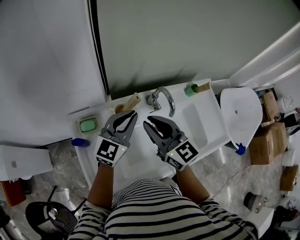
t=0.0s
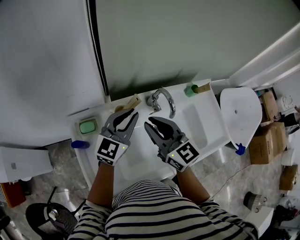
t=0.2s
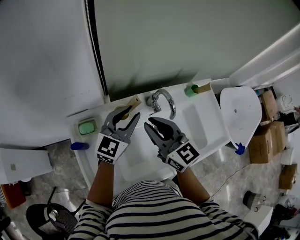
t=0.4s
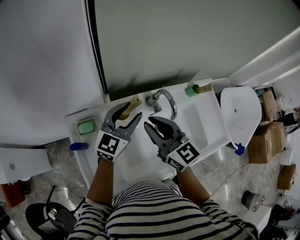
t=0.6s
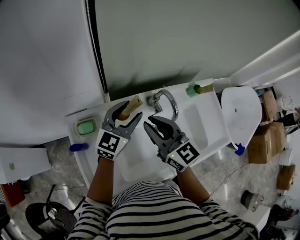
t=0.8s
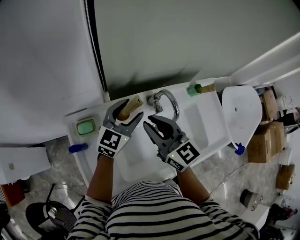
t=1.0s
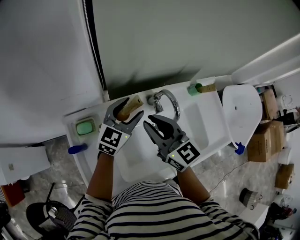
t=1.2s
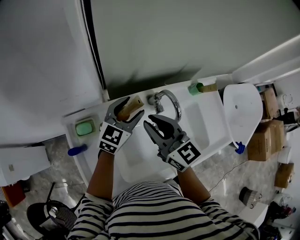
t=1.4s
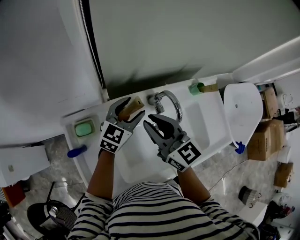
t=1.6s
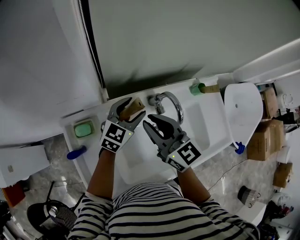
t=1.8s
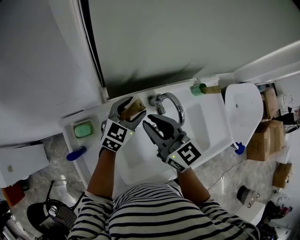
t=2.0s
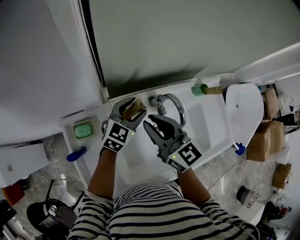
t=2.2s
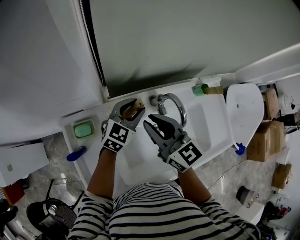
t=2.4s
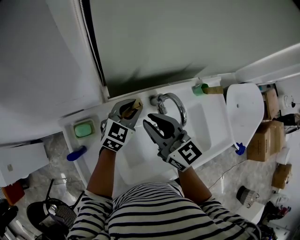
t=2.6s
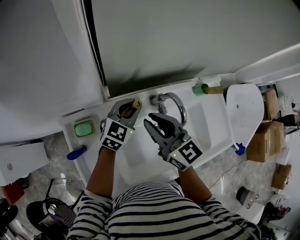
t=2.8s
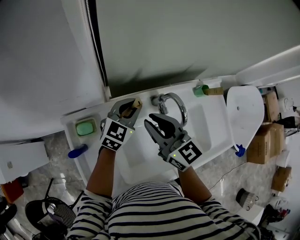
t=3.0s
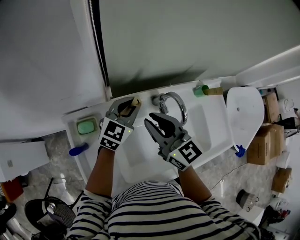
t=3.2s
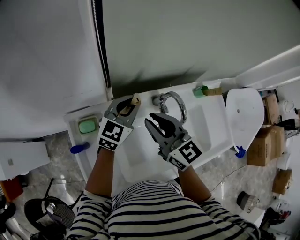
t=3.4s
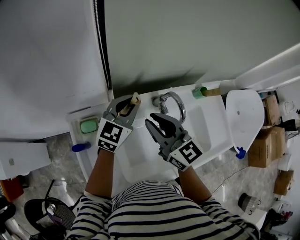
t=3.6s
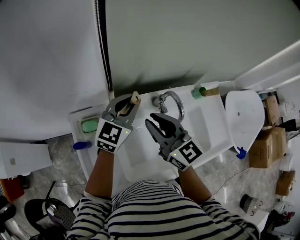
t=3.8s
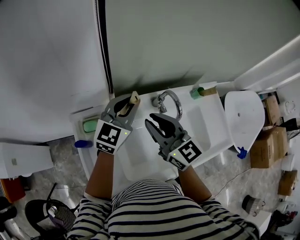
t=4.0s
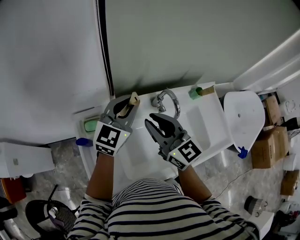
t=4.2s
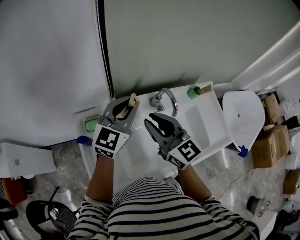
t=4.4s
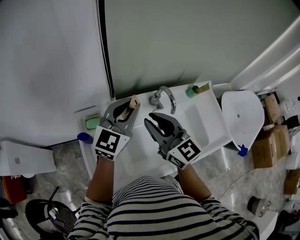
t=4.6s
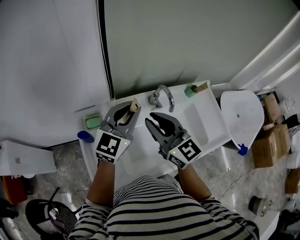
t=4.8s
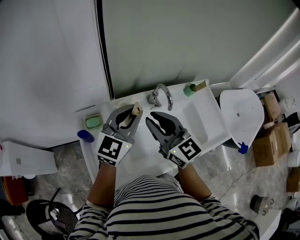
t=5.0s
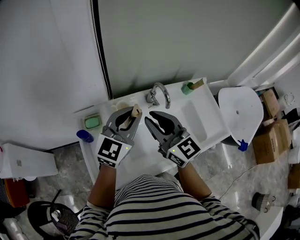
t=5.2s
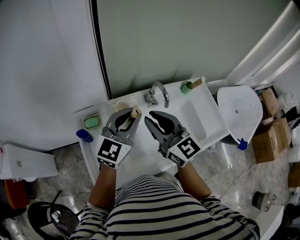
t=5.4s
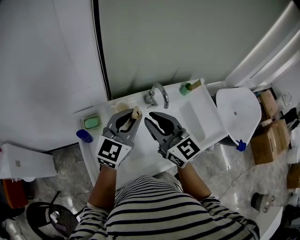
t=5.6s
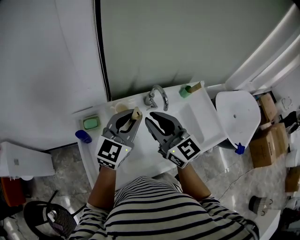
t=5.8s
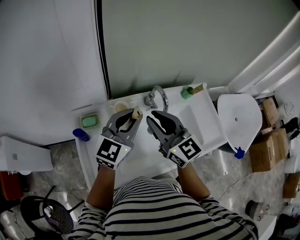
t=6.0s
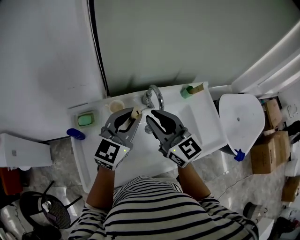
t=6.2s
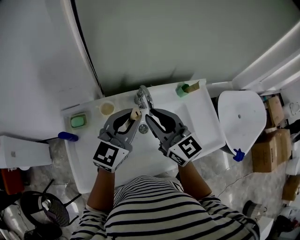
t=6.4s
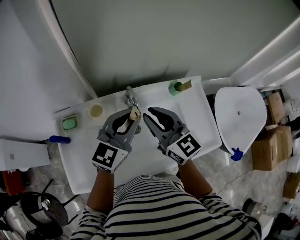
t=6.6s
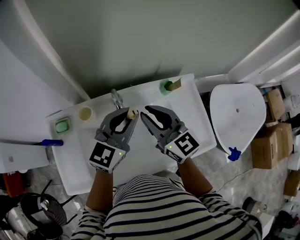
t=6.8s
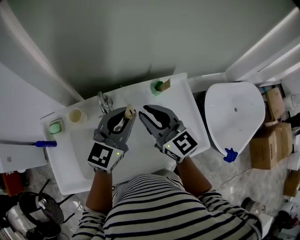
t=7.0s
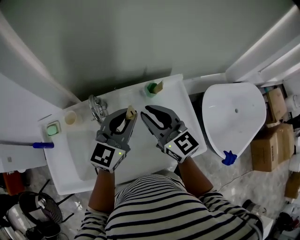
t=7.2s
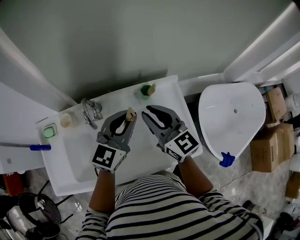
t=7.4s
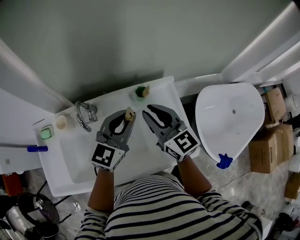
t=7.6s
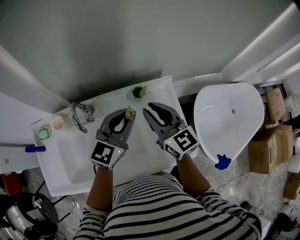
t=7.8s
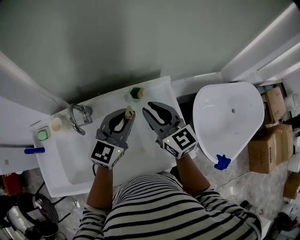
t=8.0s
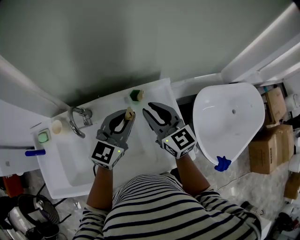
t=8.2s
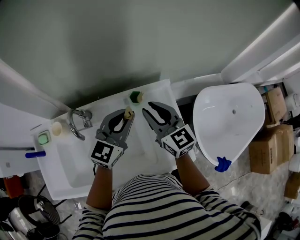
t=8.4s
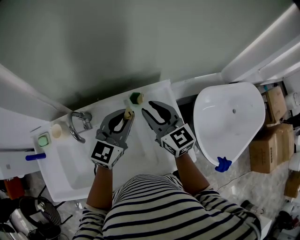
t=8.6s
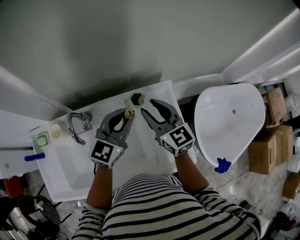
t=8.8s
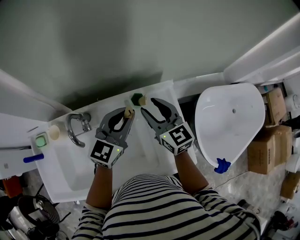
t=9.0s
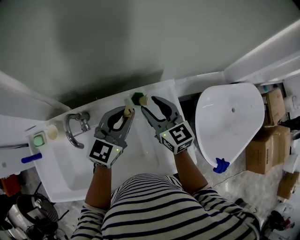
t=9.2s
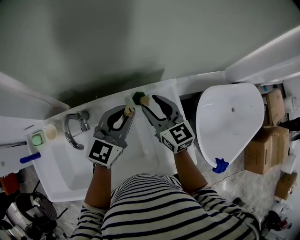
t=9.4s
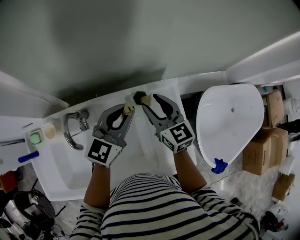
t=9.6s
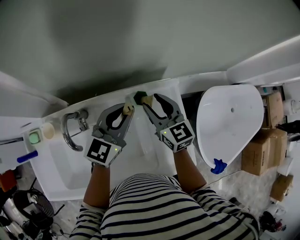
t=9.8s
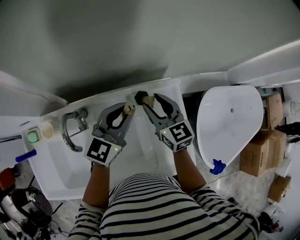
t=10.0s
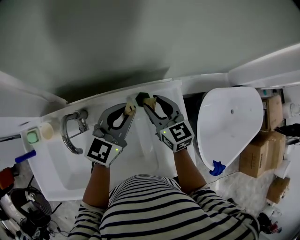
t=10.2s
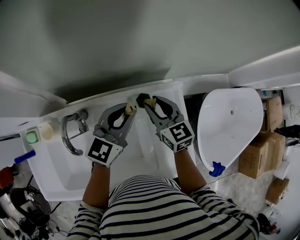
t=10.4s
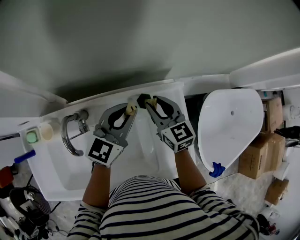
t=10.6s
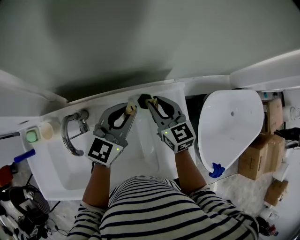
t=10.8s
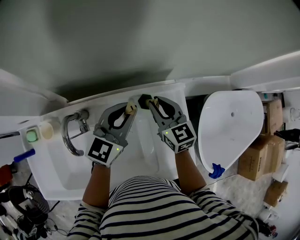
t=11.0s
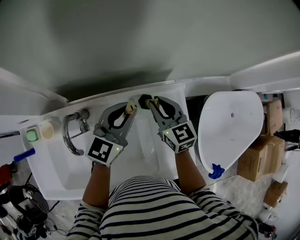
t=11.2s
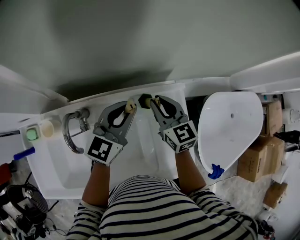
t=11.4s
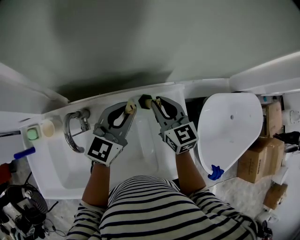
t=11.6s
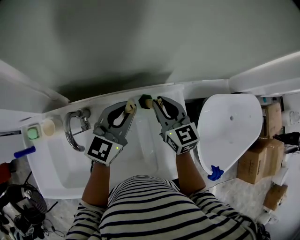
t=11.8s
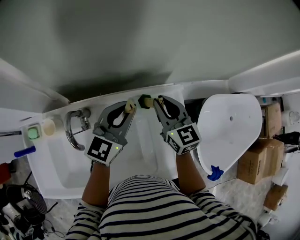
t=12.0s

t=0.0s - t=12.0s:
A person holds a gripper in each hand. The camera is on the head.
t=0.0s - t=1.6s: The left gripper is displaced downward and forward by about 10 cm, and opens its fingers. Meanwhile the right gripper goes roughly 5 cm forward.
t=1.6s - t=3.0s: The left gripper closes.
t=3.0s - t=4.4s: The left gripper heads upward and backward, covering approximately 20 cm; the right gripper moves backward and upward, some 10 cm.
t=4.4s - t=6.0s: The left gripper is displaced backward by approximately 10 cm; the right gripper changes place by roughly 5 cm.
t=6.0s - t=7.6s: Both grippers move to the right, about 35 cm.
t=7.6s - t=9.0s: The left gripper travels forward by some 10 cm, while the right gripper shifts roughly 10 cm forward and downward, and opens up.
t=9.0s - t=10.4s: The left gripper shifts by roughly 5 cm; the right gripper goes approximately 5 cm downward.
t=10.4s - t=12.0s: The right gripper ends up about 5 cm from where it was.

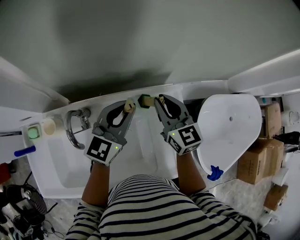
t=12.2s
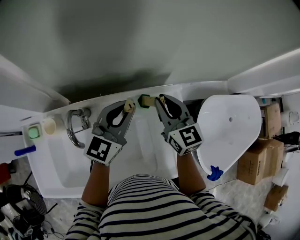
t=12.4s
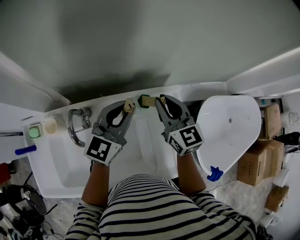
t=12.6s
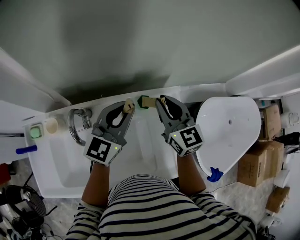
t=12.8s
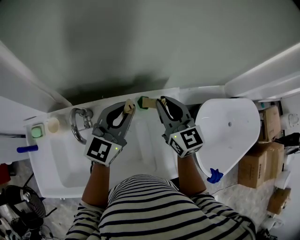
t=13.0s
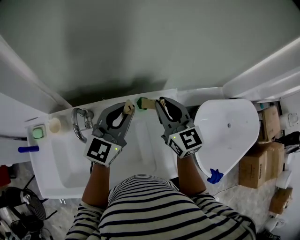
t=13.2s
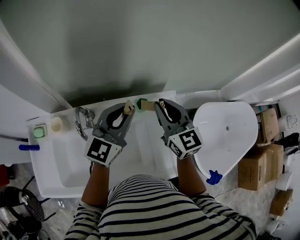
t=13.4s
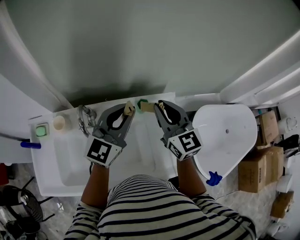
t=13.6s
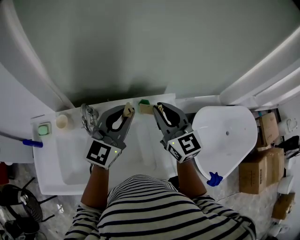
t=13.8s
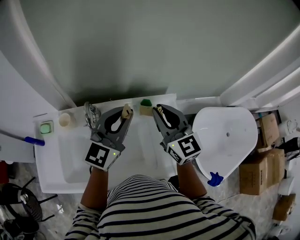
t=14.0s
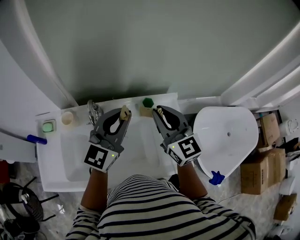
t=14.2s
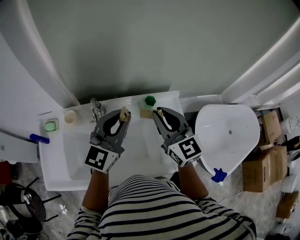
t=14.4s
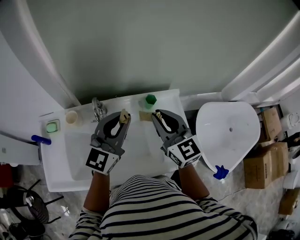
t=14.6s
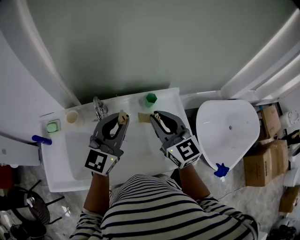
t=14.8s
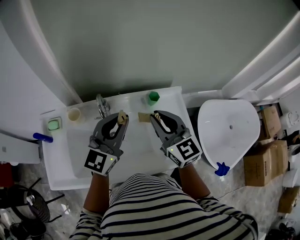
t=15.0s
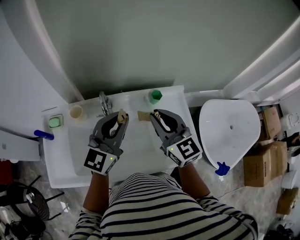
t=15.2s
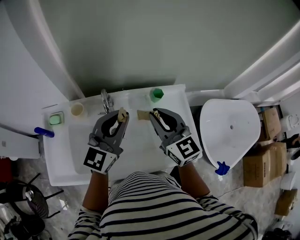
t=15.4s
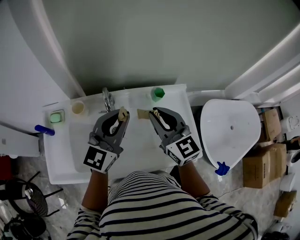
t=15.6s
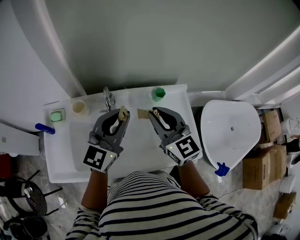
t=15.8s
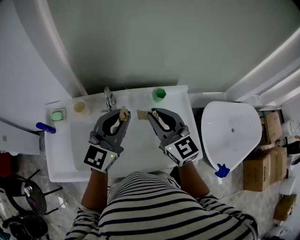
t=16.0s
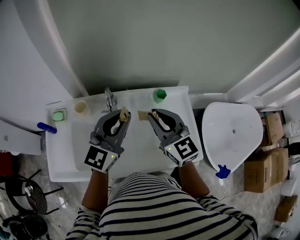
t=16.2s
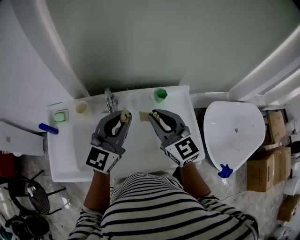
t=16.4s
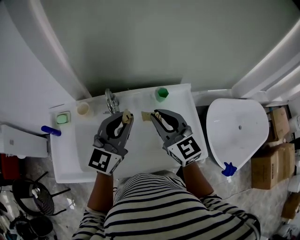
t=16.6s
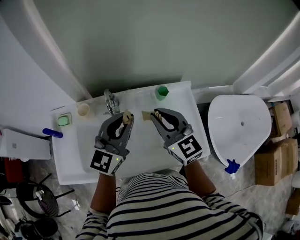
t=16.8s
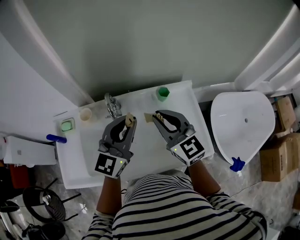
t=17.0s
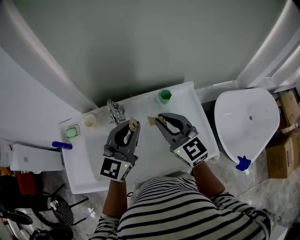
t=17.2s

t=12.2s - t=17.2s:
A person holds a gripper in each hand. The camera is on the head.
t=12.2s - t=13.8s: The grippers both shift upward and backward by approximately 15 cm.
t=13.8s - t=15.6s: The grippers both shift to the left and backward by about 15 cm.
t=15.6s - t=17.2s: The grippers move only a little.

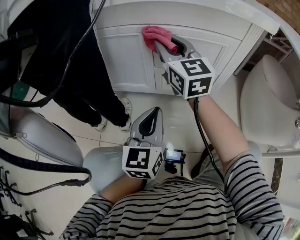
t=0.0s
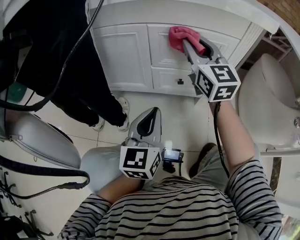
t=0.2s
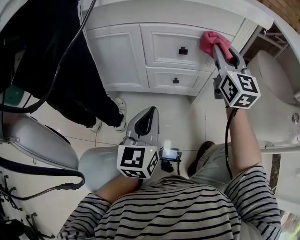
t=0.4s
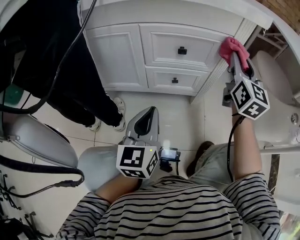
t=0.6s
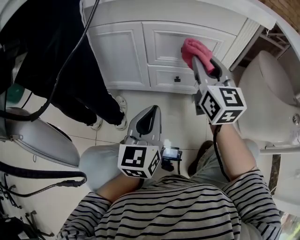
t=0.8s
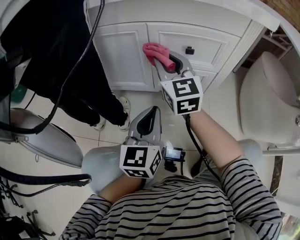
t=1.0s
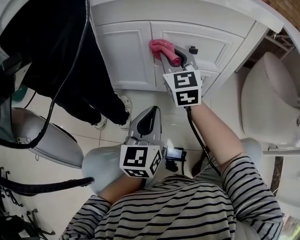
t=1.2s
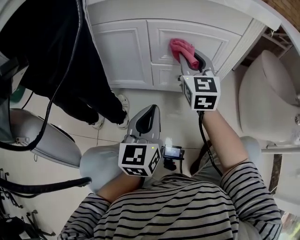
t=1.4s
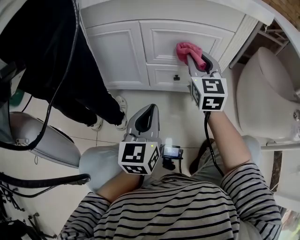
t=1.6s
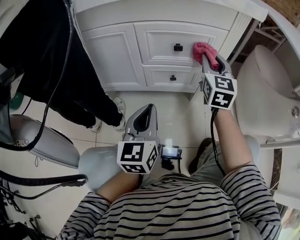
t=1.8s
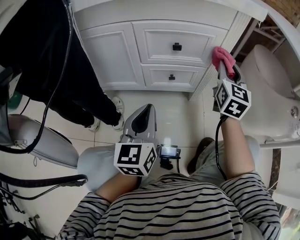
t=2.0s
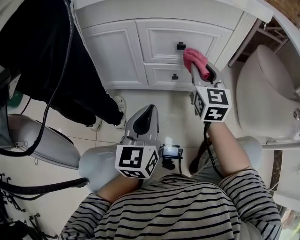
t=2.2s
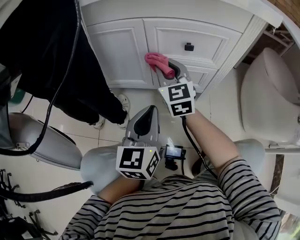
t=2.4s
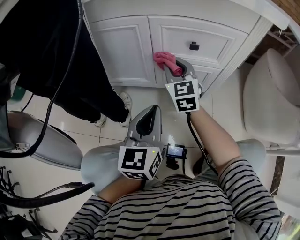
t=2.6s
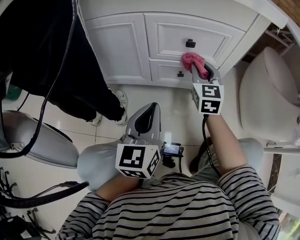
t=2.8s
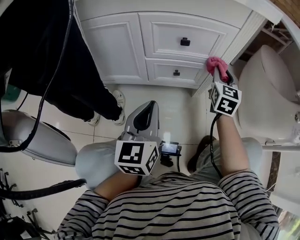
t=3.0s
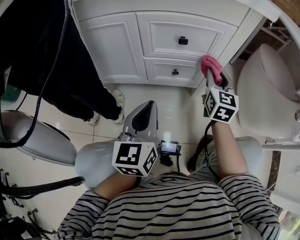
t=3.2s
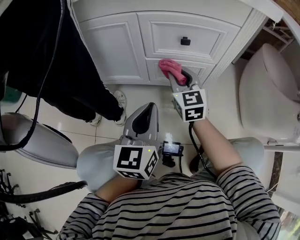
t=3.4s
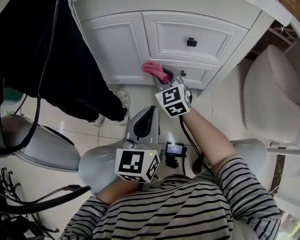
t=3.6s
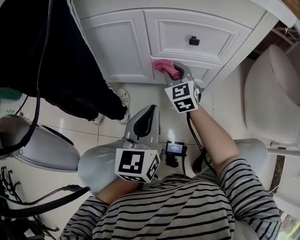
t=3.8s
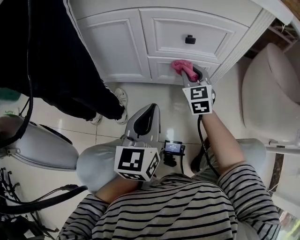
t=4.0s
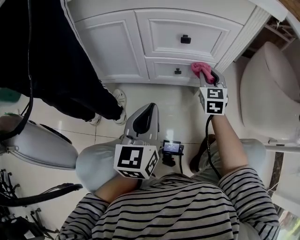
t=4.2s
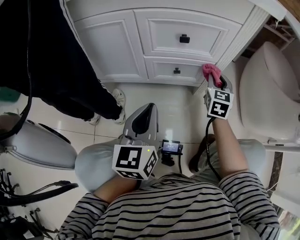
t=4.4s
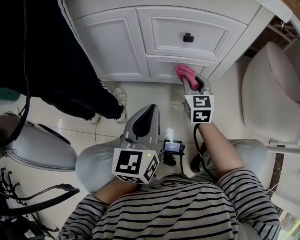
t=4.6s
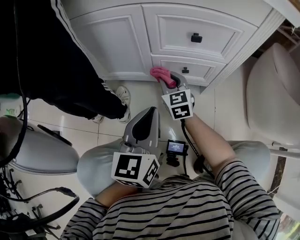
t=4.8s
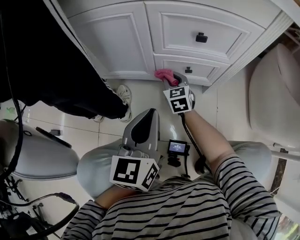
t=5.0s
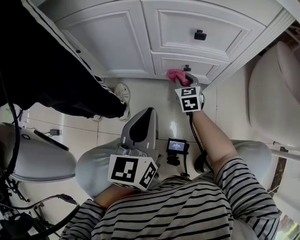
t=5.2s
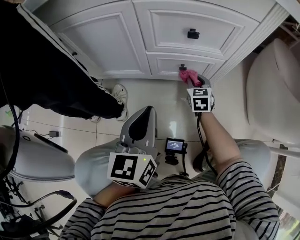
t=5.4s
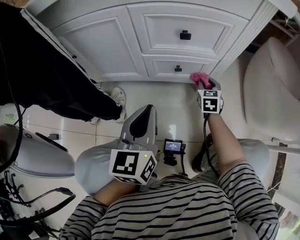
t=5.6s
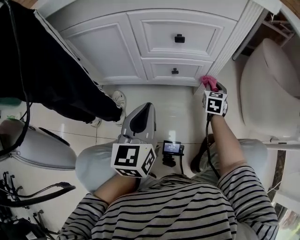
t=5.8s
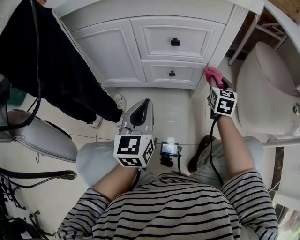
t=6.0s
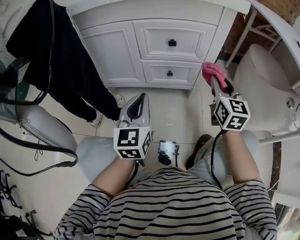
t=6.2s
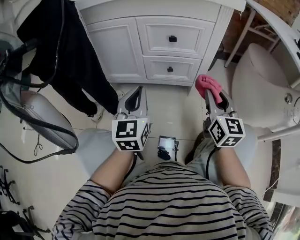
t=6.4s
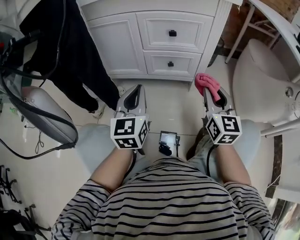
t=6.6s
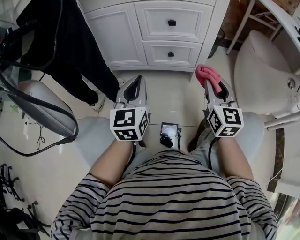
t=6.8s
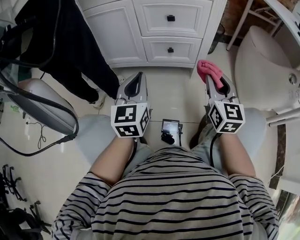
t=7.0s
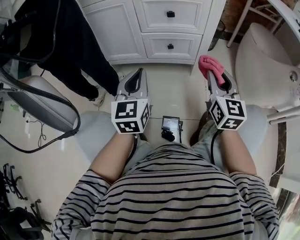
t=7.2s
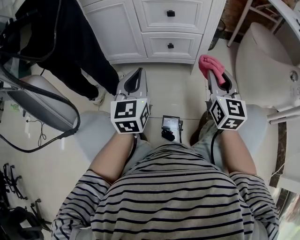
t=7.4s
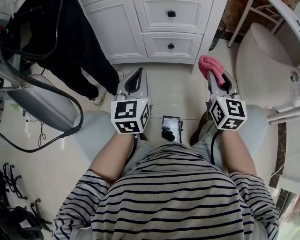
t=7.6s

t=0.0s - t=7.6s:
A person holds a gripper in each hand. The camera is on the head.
t=0.0s - t=1.6s: The right gripper moves left and right over some 25 cm, changing direction 2 times, and changes its angle by approximately 20 degrees.
t=1.6s - t=3.0s: The right gripper moves left and right over roughly 25 cm, changing direction 2 times, and swivels some 20 degrees.
t=3.0s - t=4.6s: The right gripper goes left and right, about 25 cm each way, reversing 2 times.
t=4.6s - t=6.0s: The right gripper moves to the right, roughly 15 cm.
t=6.0s - t=7.6s: The right gripper heads backward and upward, covering about 20 cm, and changes its angle by roughly 20 degrees.
